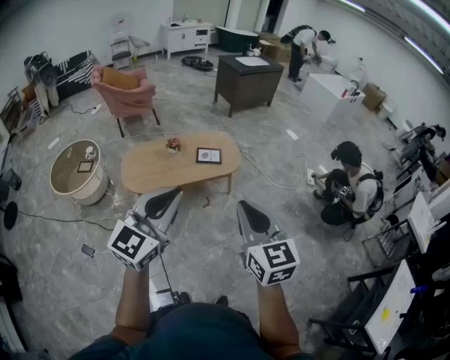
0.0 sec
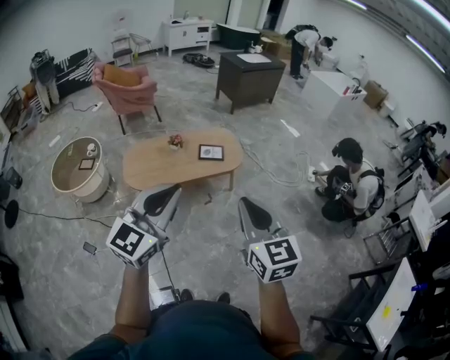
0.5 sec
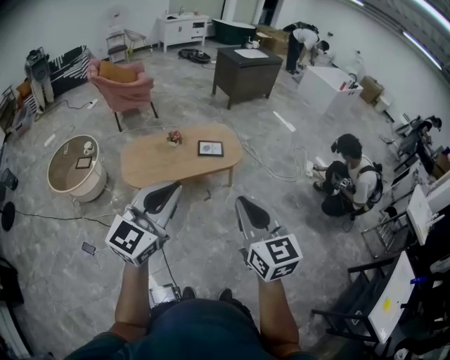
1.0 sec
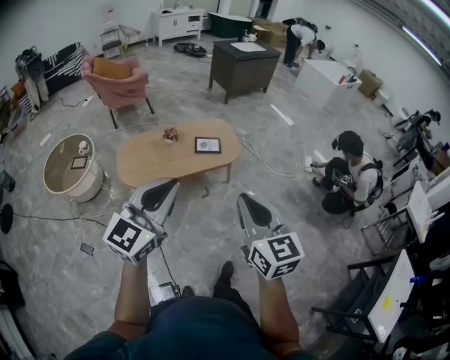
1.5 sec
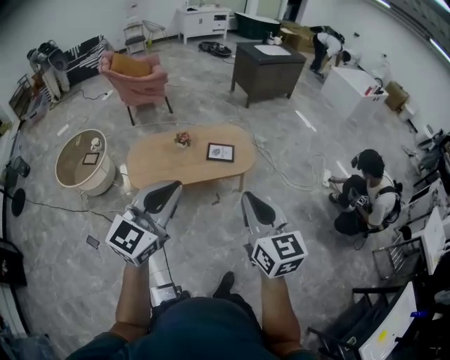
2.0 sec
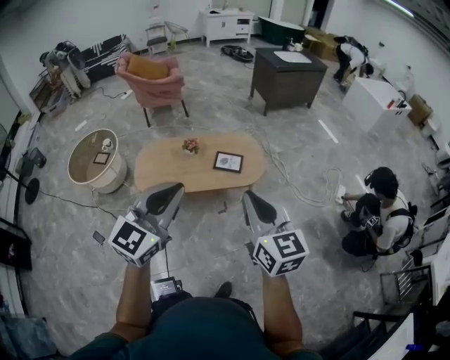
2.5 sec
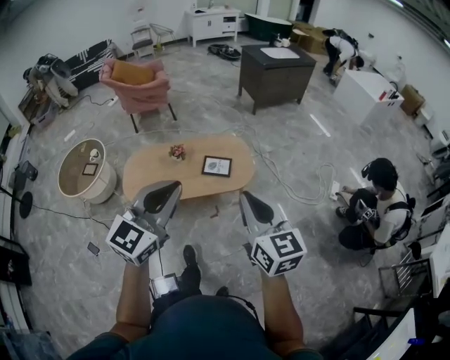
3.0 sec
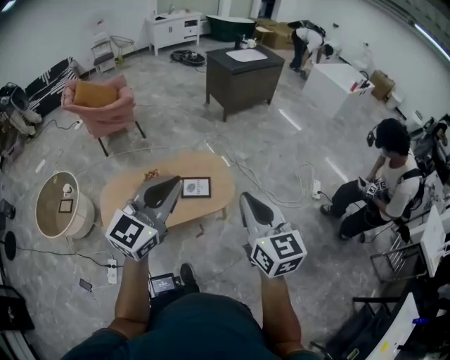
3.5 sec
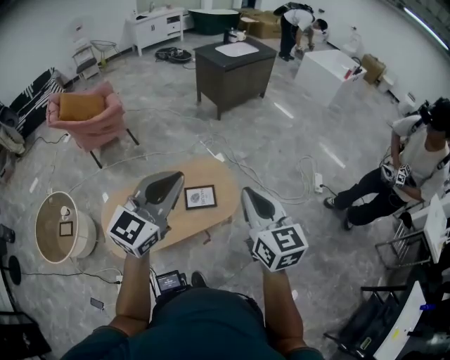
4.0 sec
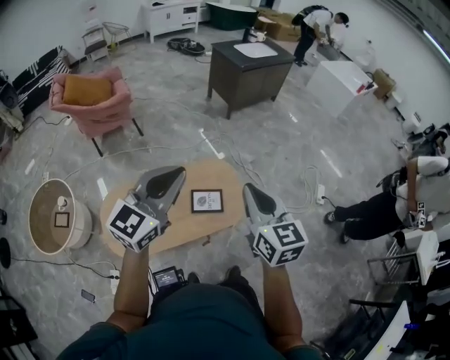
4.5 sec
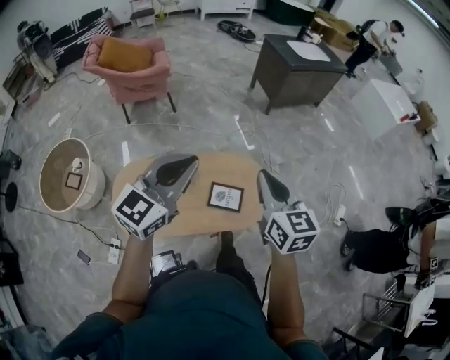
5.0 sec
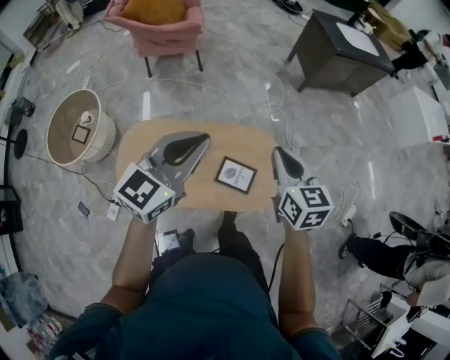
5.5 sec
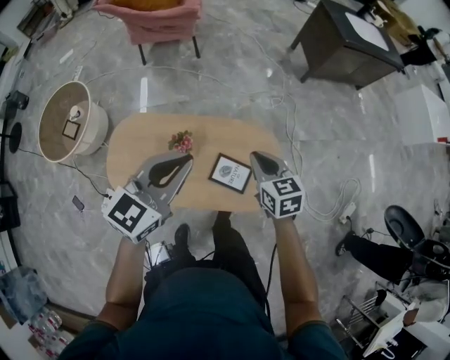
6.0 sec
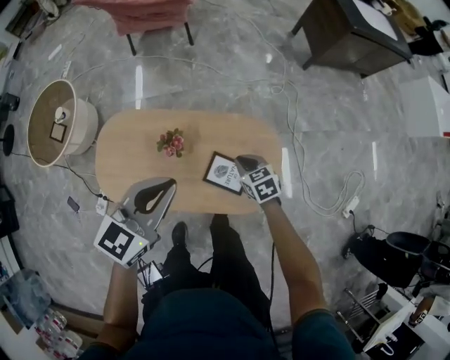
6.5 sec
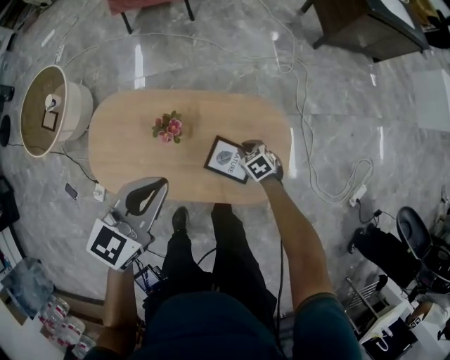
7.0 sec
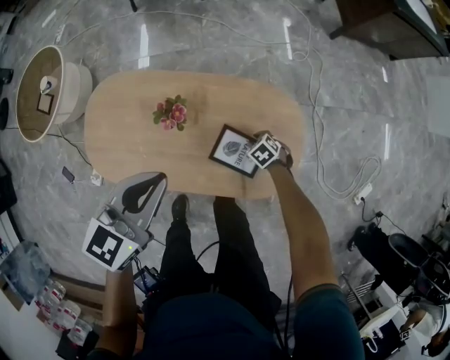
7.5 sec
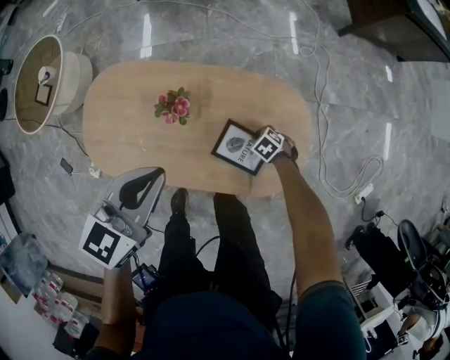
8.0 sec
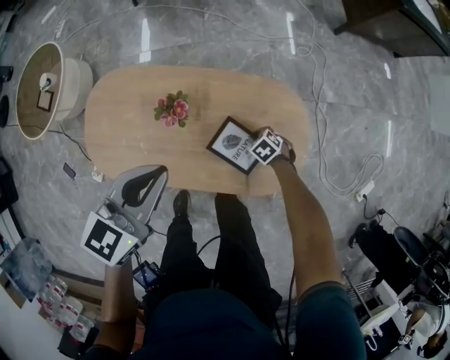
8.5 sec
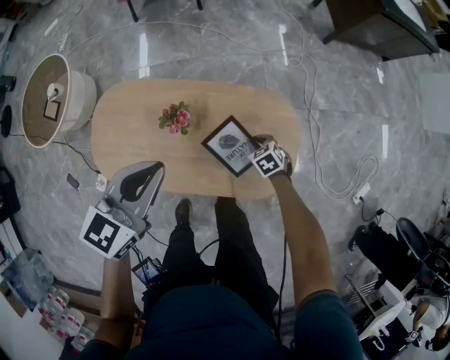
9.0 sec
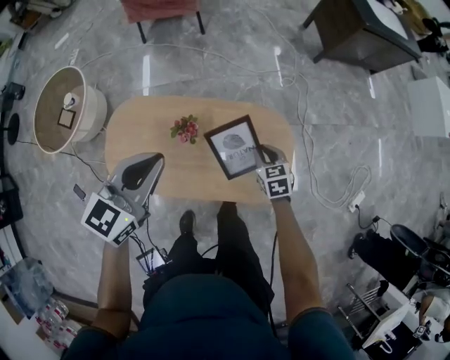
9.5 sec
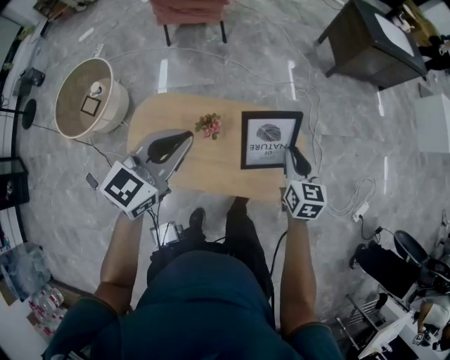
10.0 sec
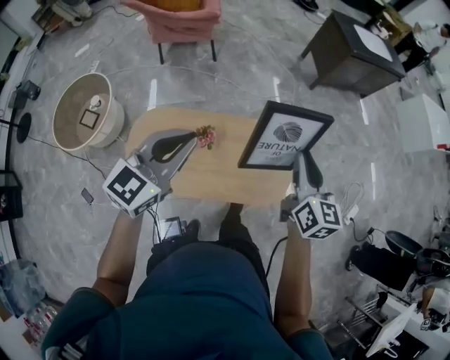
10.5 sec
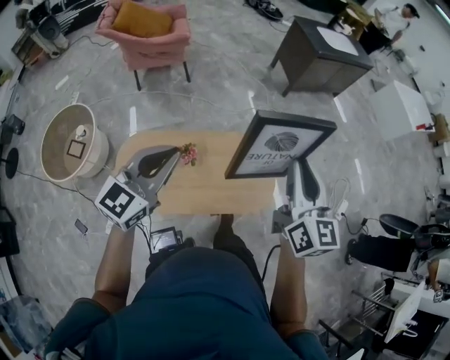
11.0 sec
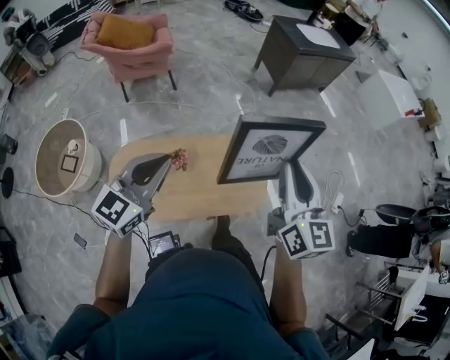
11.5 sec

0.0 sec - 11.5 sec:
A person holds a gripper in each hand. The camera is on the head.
0.0 sec - 2.0 sec: The two grippers go about 15 cm forward.
2.0 sec - 4.0 sec: Both grippers travel together forward, roughly 40 cm.
4.0 sec - 6.0 sec: The left gripper moves some 30 cm, and changes its angle by some 30 degrees. The right gripper shifts by about 50 cm, and rotates some 40 degrees.
6.0 sec - 7.5 sec: The left gripper travels downward by about 20 cm; the right gripper travels downward by some 50 cm, and tips its fingers downward by some 40 degrees.
7.5 sec - 9.5 sec: The left gripper heads upward, covering roughly 10 cm, while the right gripper shifts about 25 cm upward, and turns by about 40 degrees.
9.5 sec - 11.5 sec: The left gripper shifts roughly 15 cm upward and backward, and rotates approximately 20 degrees, while the right gripper is displaced upward by roughly 50 cm, and tilts its fingers about 50 degrees upward.

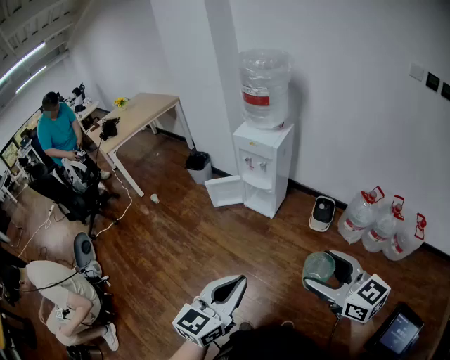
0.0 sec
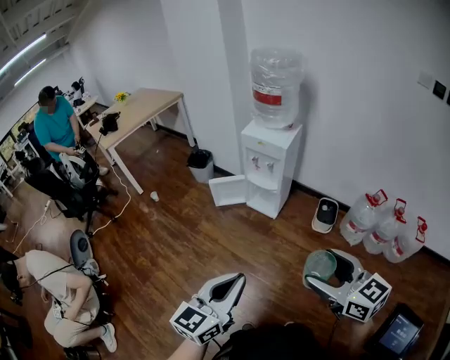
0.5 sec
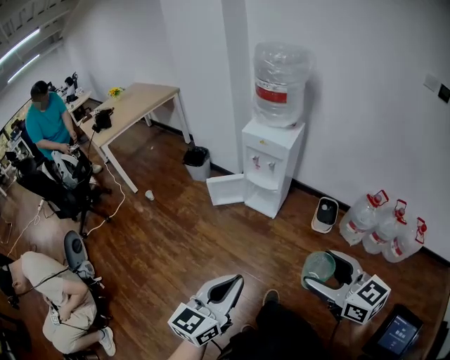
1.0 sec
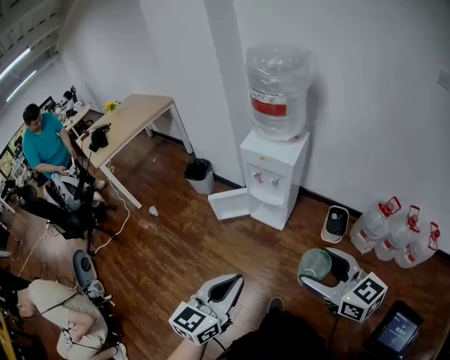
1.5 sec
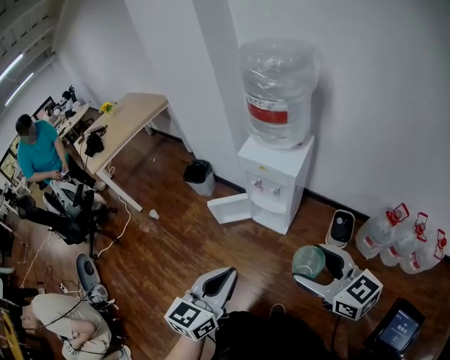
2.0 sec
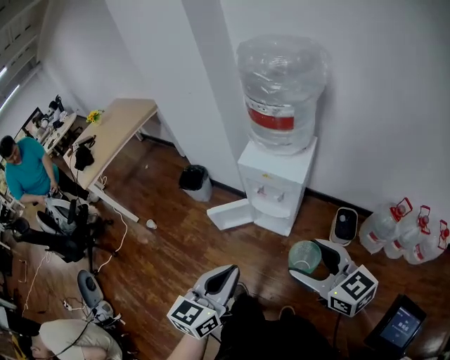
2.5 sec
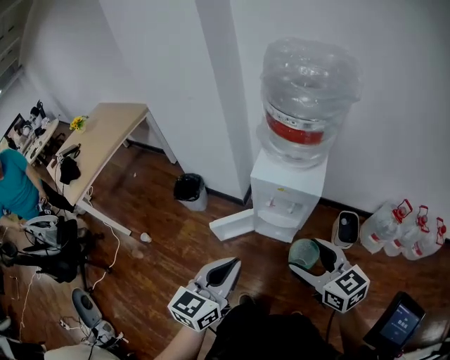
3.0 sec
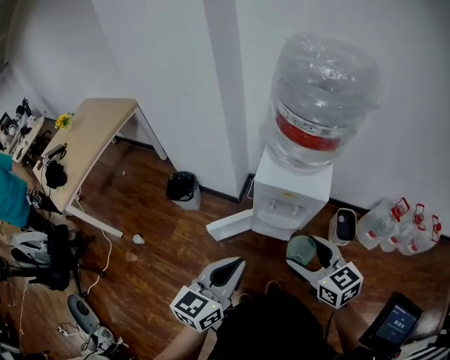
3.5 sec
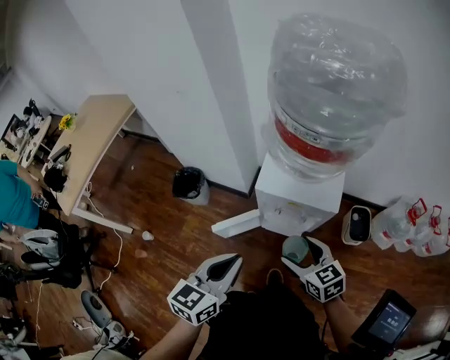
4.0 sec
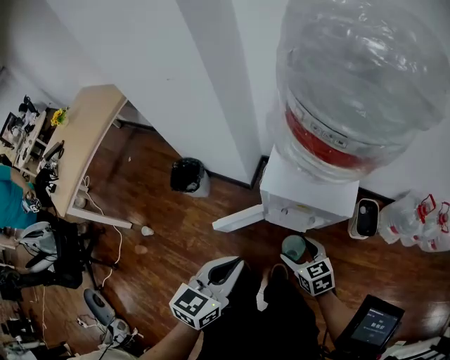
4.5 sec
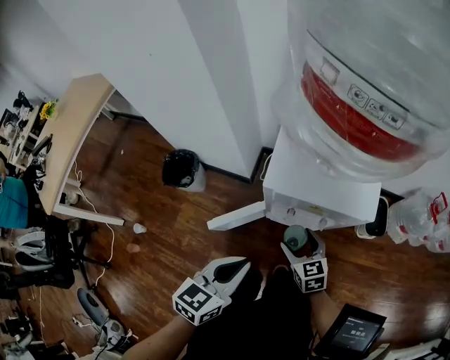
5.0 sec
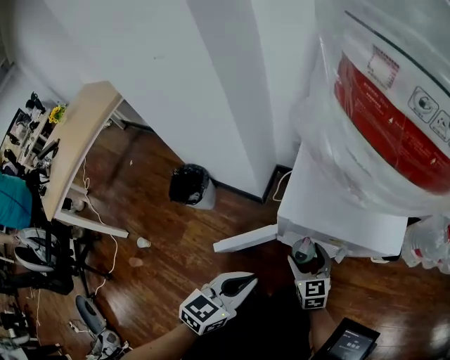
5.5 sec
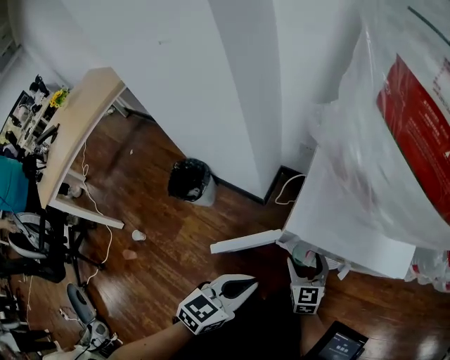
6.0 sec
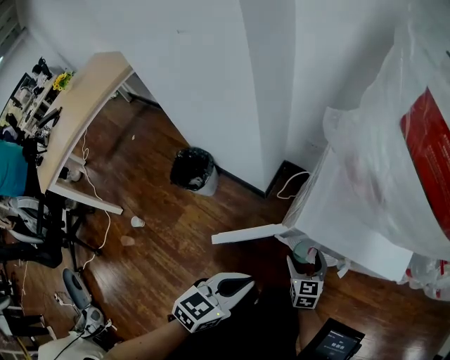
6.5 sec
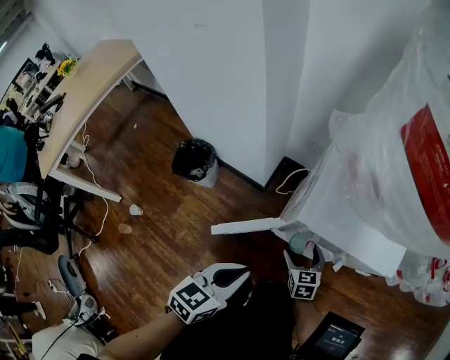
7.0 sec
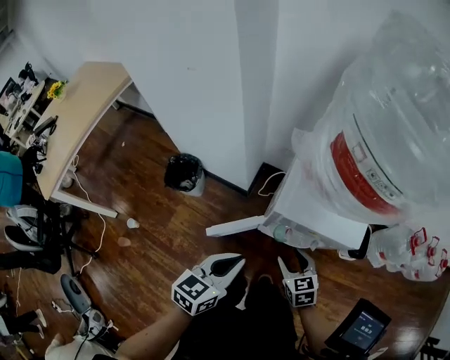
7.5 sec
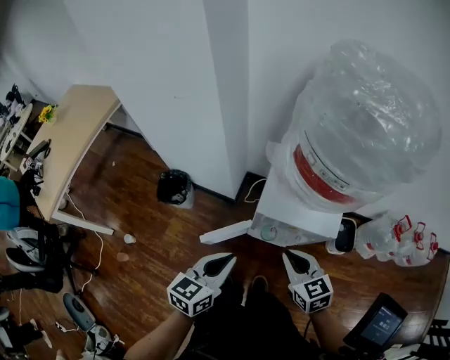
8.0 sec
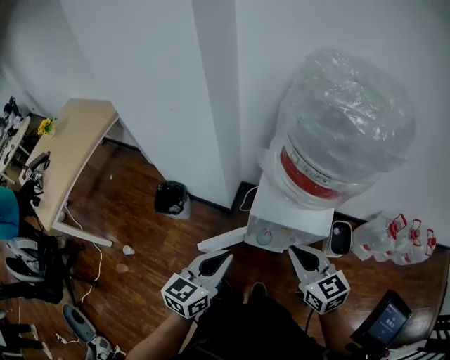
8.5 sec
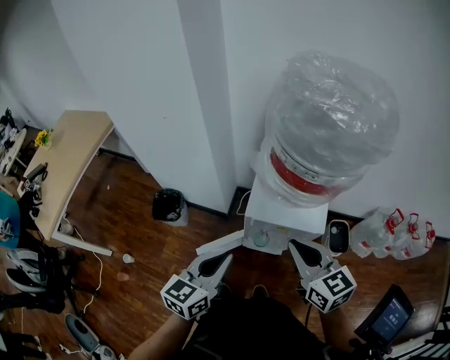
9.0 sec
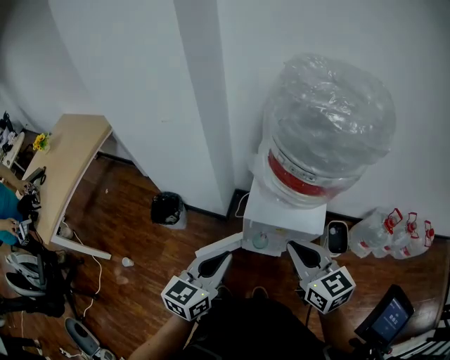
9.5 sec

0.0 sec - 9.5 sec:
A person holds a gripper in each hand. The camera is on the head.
0.0 sec - 2.0 sec: The two grippers go approximately 35 cm forward.
2.0 sec - 4.0 sec: The left gripper heads forward and to the left, covering some 35 cm, while the right gripper travels forward, downward and to the left by approximately 40 cm, and turns by roughly 30 degrees.
4.0 sec - 5.5 sec: The right gripper goes roughly 30 cm downward and forward, while the left gripper moves downward, approximately 25 cm.
5.5 sec - 7.5 sec: The right gripper goes roughly 15 cm upward and backward. The left gripper moves upward, about 10 cm.
7.5 sec - 9.5 sec: The right gripper shifts about 35 cm upward, rotates roughly 20 degrees, and closes. The left gripper shifts about 15 cm upward.

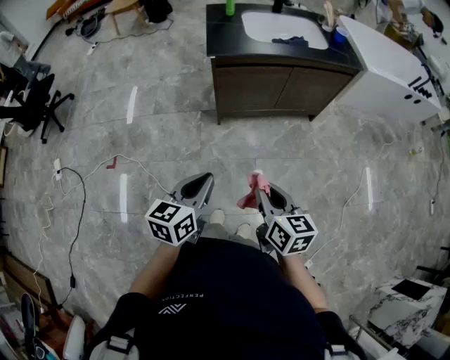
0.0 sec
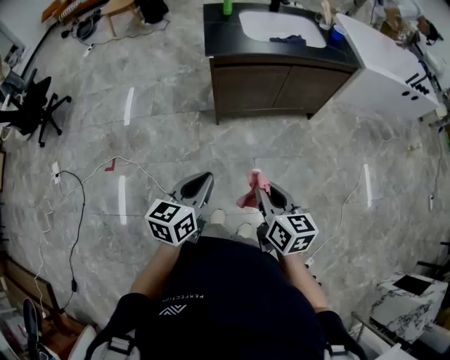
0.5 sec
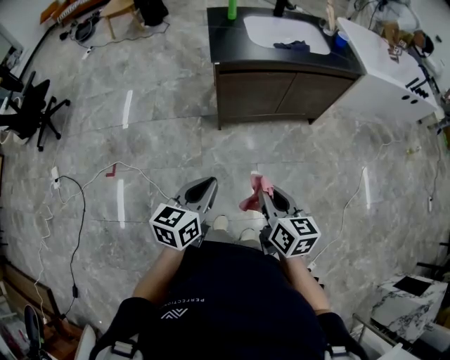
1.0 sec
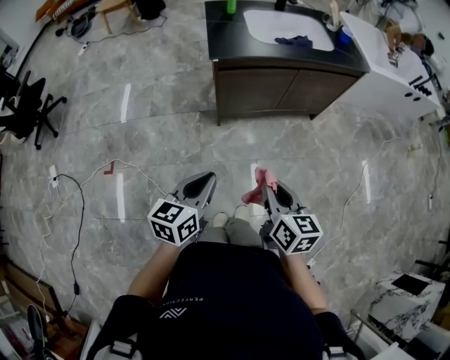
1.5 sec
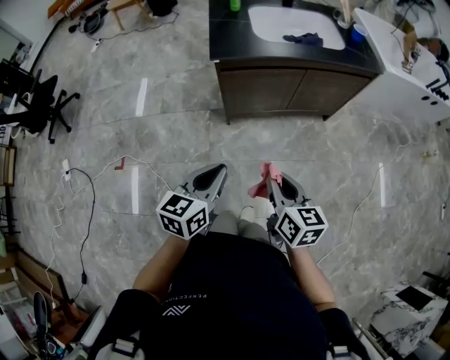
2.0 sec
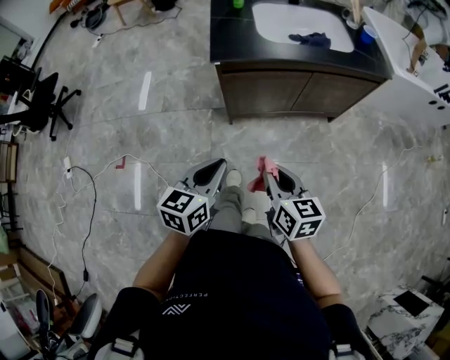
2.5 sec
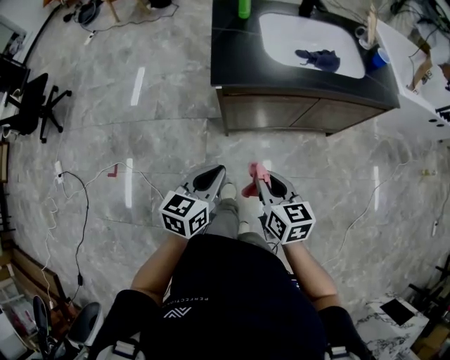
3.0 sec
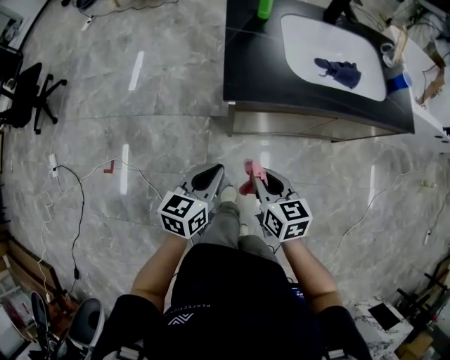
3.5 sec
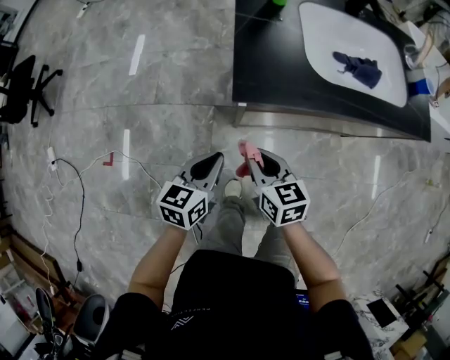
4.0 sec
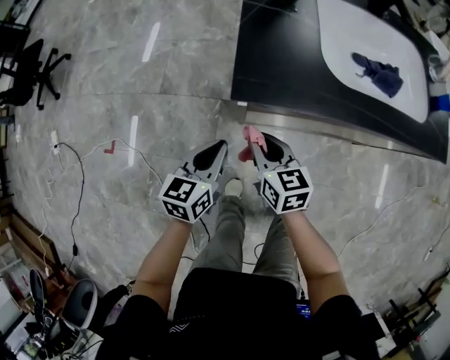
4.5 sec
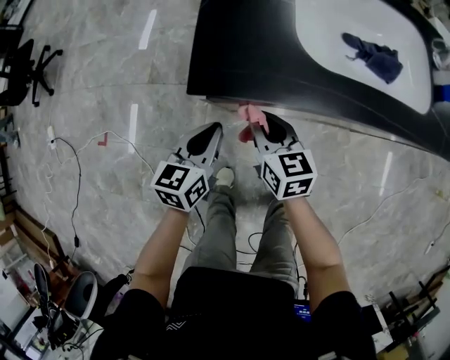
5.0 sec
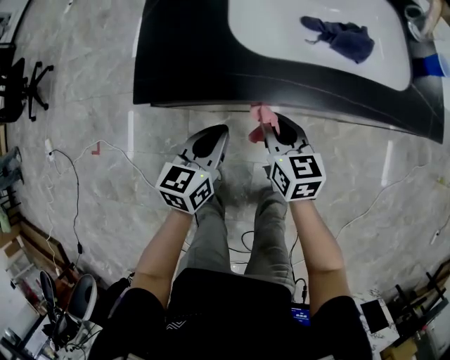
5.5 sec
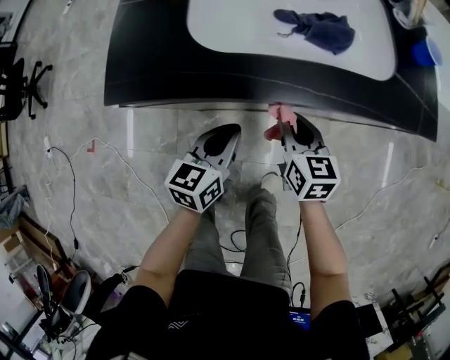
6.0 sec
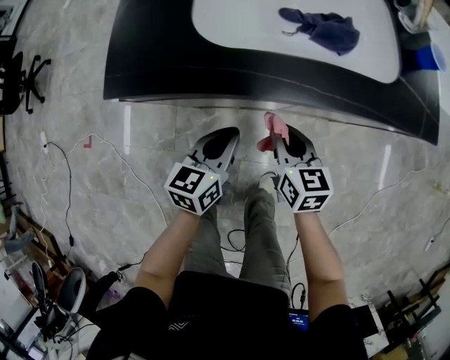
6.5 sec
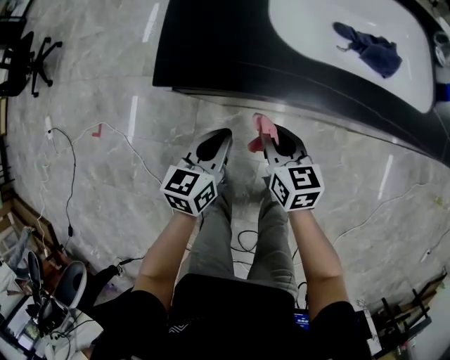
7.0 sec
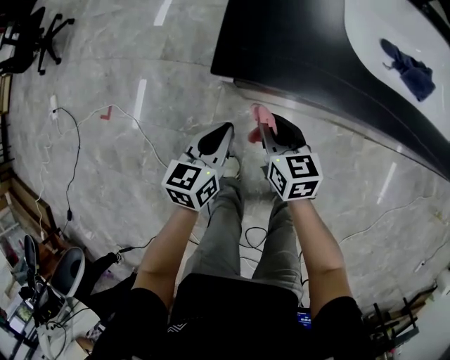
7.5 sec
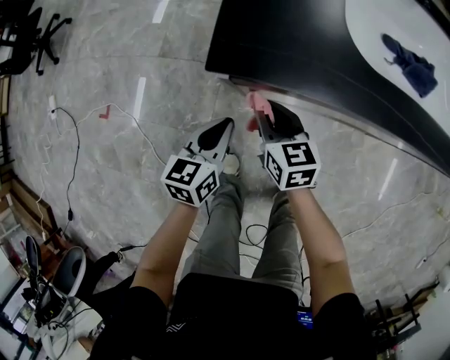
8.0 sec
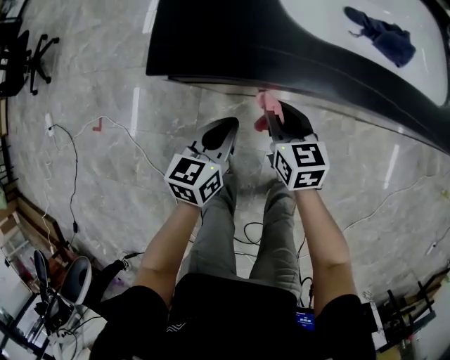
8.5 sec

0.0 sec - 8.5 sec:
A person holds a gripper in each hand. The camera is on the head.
0.0 sec - 2.0 sec: Both grippers travel together forward, some 10 cm.
2.0 sec - 4.0 sec: The left gripper shifts approximately 30 cm forward and downward, while the right gripper shifts roughly 35 cm forward and to the left, and rotates roughly 20 degrees.
4.0 sec - 6.5 sec: Both grippers move to the right, about 30 cm.
6.5 sec - 8.5 sec: The grippers both shift to the left by some 15 cm.
